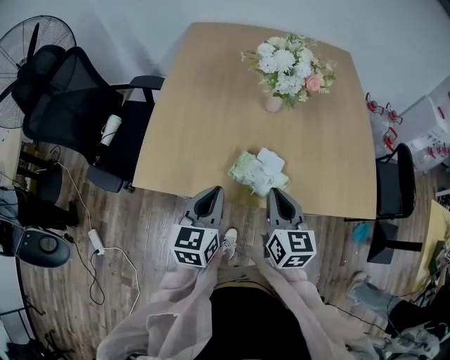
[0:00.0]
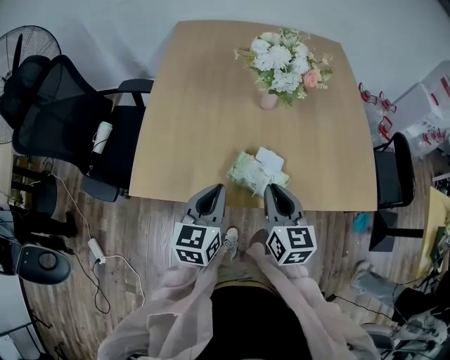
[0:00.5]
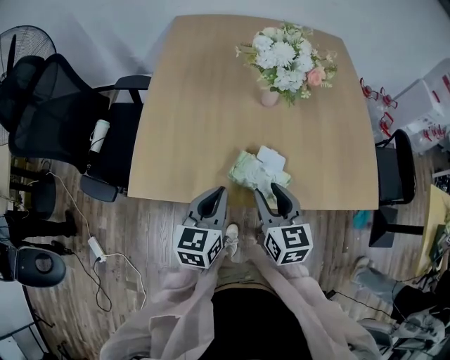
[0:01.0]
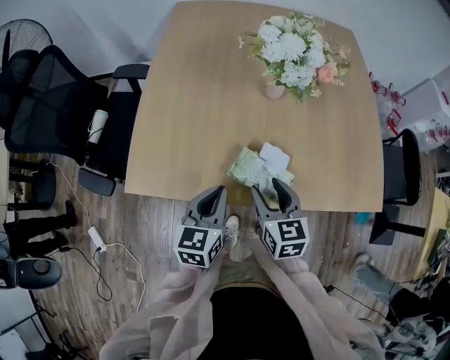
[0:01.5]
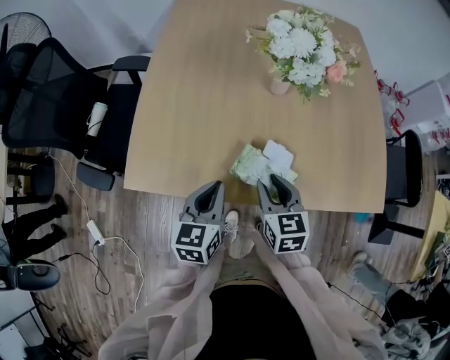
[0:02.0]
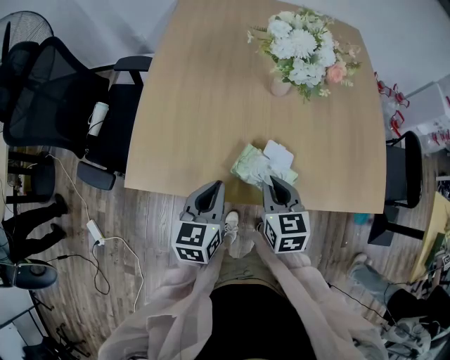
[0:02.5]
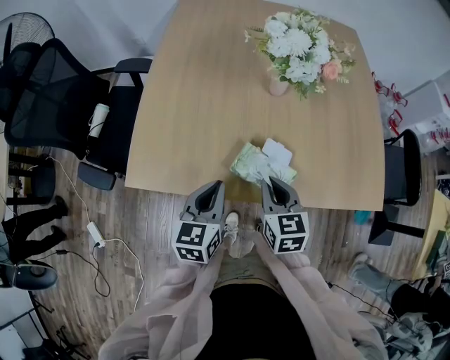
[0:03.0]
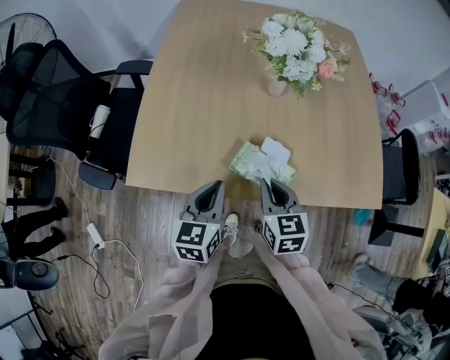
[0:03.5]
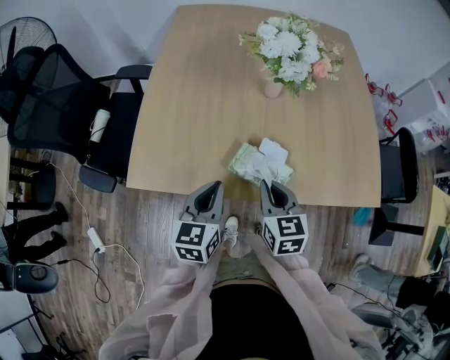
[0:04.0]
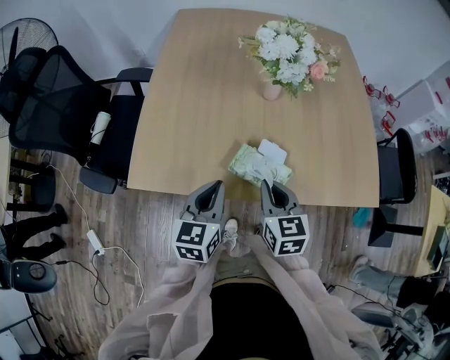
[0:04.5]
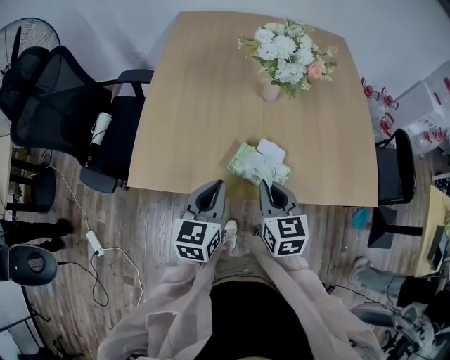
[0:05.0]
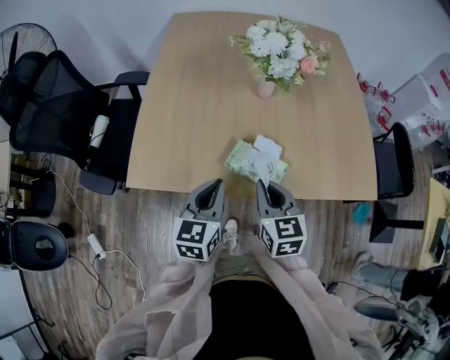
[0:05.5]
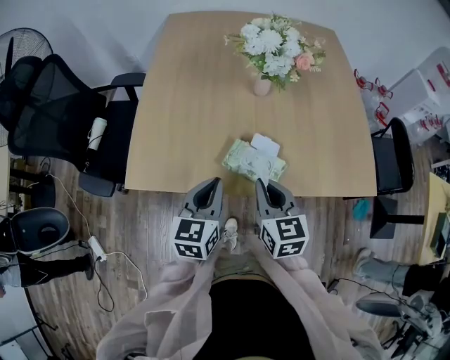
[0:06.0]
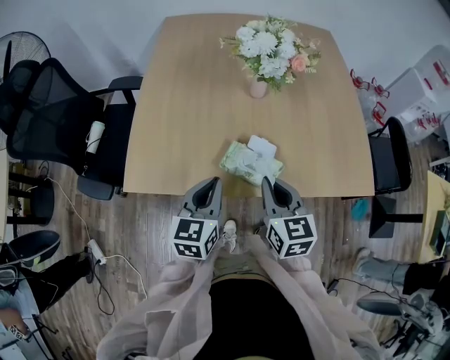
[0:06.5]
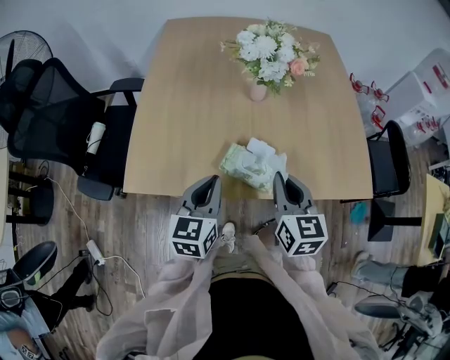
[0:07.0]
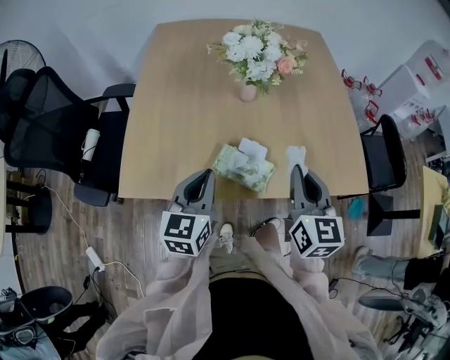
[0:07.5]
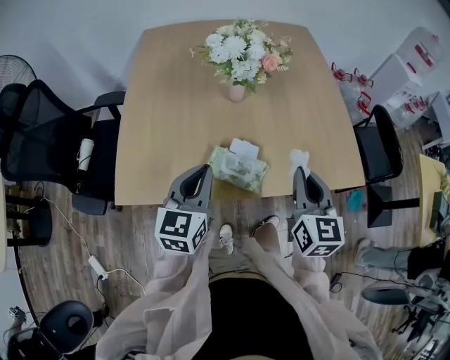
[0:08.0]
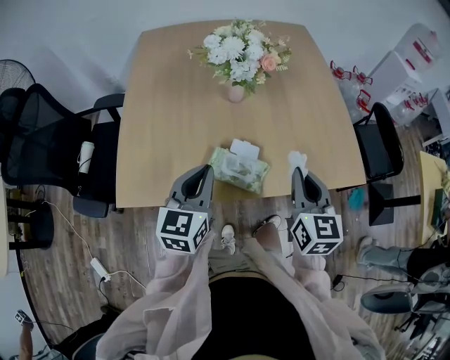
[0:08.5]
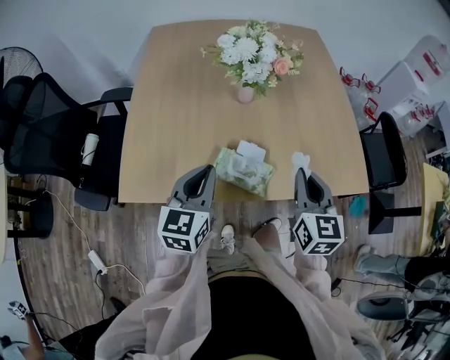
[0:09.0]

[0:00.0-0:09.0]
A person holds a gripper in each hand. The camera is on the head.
0:00.0 to 0:02.0: The right gripper travels downward and forward by about 10 cm, and opens up; the left gripper heads downward, covering about 5 cm.
0:02.0 to 0:04.5: The right gripper closes up.
0:04.5 to 0:07.0: The right gripper is displaced upward and to the right by some 10 cm.
0:07.0 to 0:09.0: The right gripper goes roughly 10 cm to the right.

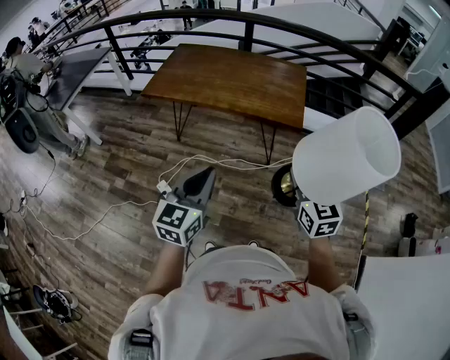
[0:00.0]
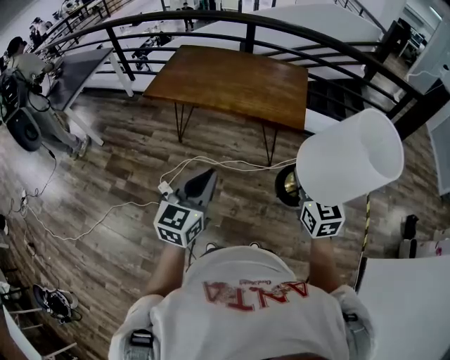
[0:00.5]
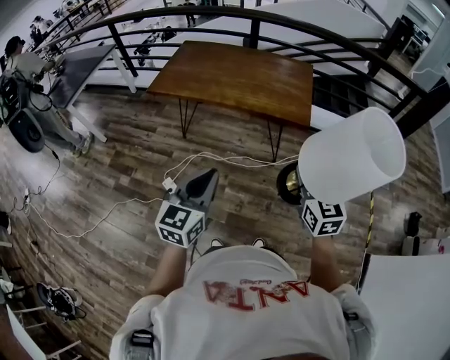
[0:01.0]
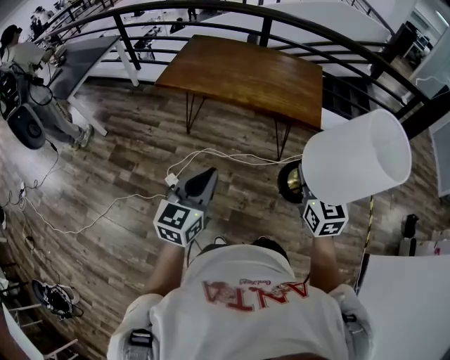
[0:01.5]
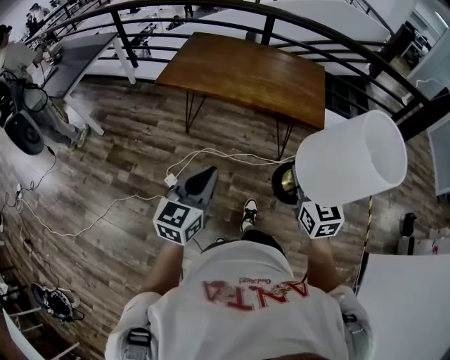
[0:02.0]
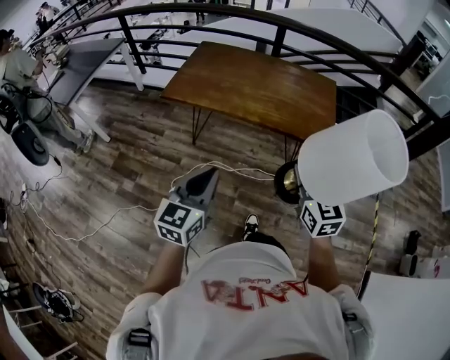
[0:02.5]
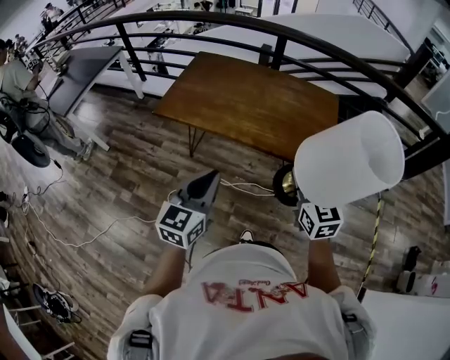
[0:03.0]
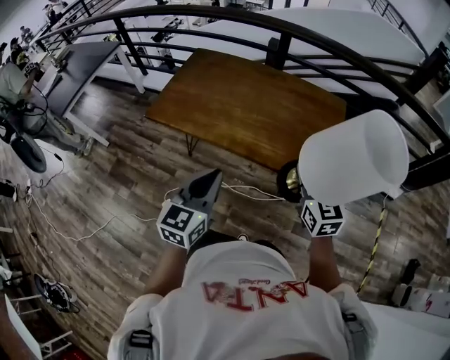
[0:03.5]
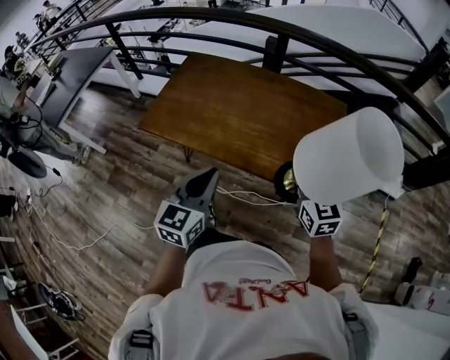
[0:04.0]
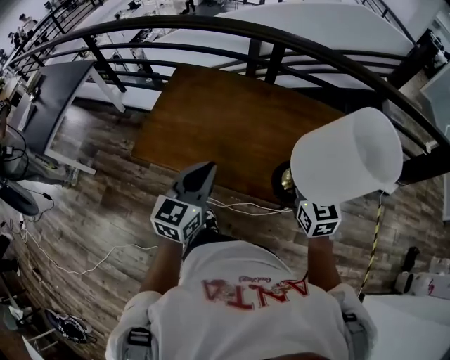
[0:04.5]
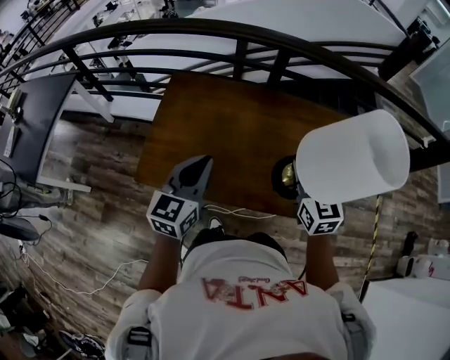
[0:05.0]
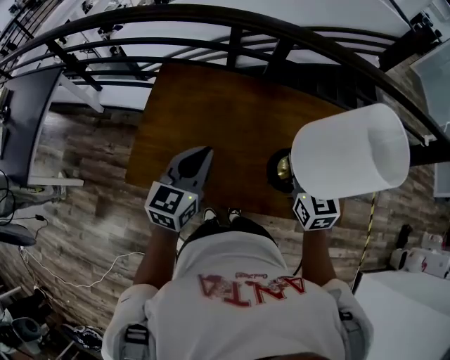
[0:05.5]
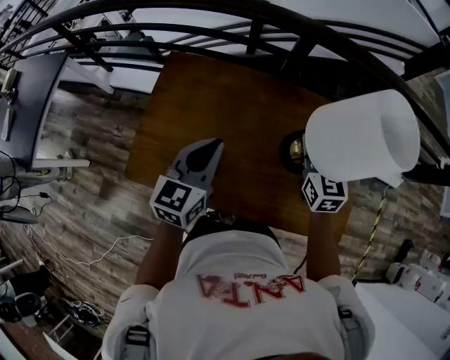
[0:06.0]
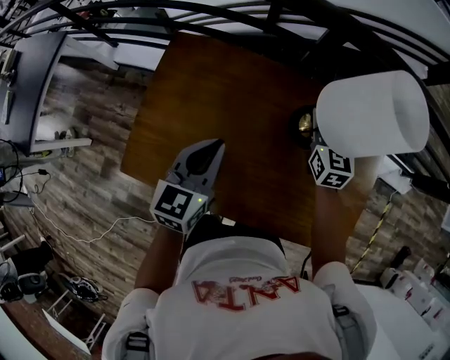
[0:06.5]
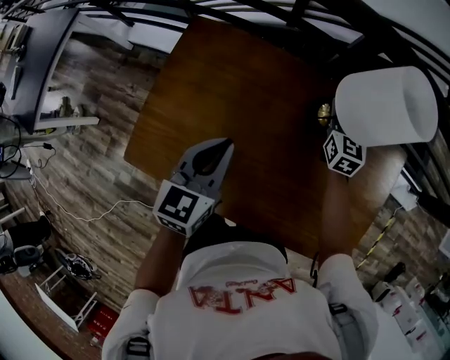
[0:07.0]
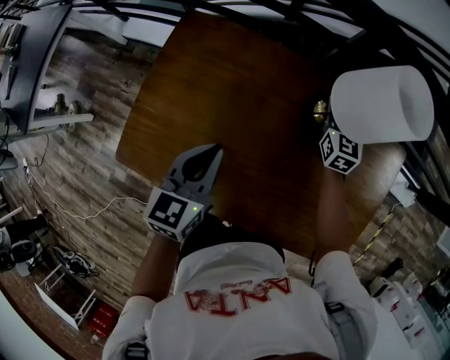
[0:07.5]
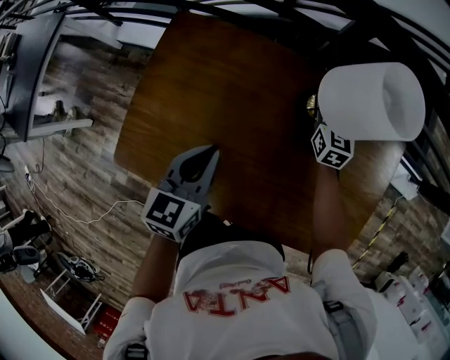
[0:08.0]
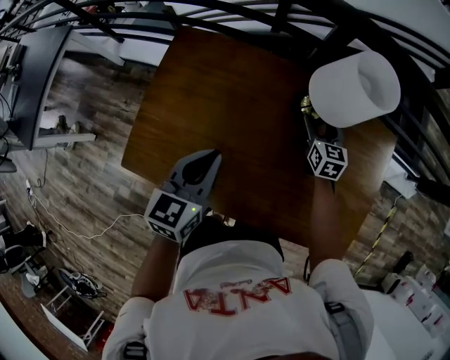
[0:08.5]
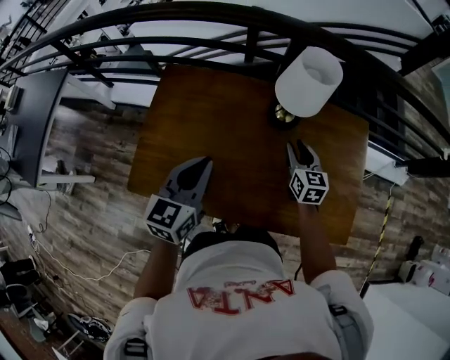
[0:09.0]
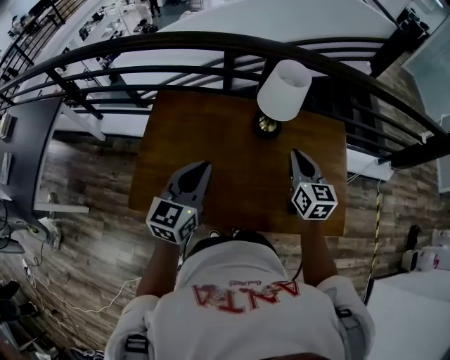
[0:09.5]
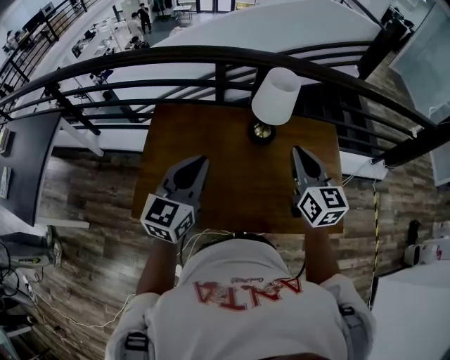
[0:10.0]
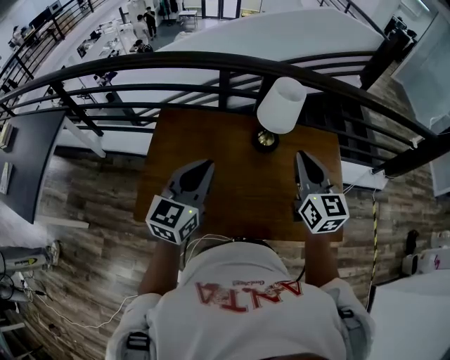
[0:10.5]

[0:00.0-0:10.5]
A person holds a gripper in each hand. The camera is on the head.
0:00.0 to 0:02.0: The grippers both shift to the left by some 15 cm.
0:02.0 to 0:04.0: Both grippers travel together forward, approximately 35 cm.
0:04.0 to 0:06.5: Both grippers travel together forward, roughly 40 cm.
0:06.5 to 0:08.5: The right gripper is displaced downward by roughly 10 cm, and opens up.
0:08.5 to 0:10.5: The left gripper shifts about 15 cm upward, and swivels roughly 30 degrees. Meanwhile the right gripper is displaced upward and backward by about 35 cm, changes its angle by some 20 degrees, and closes its fingers.

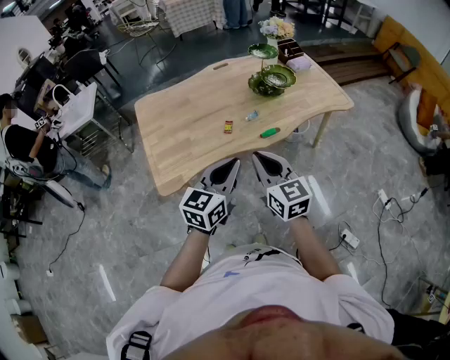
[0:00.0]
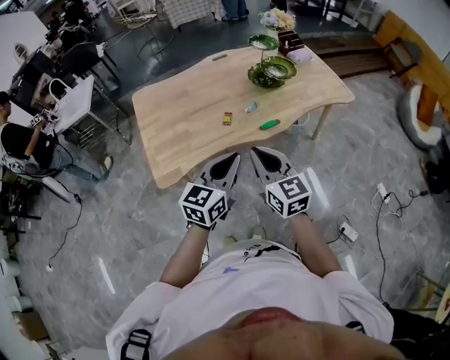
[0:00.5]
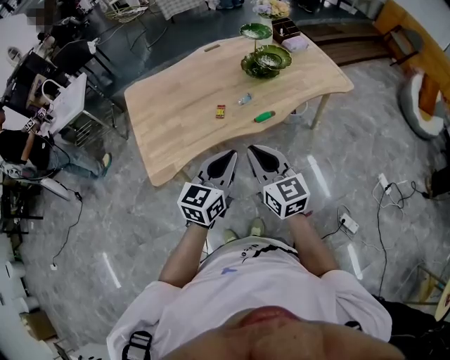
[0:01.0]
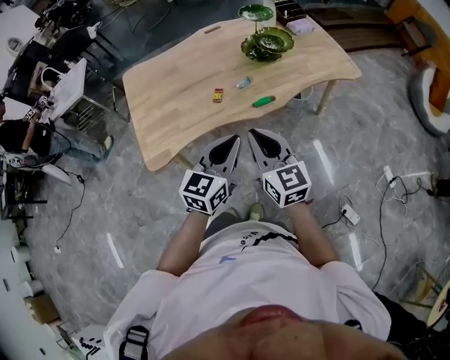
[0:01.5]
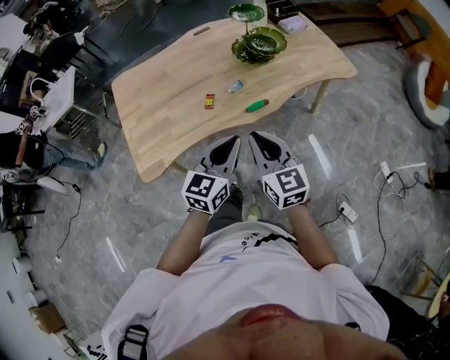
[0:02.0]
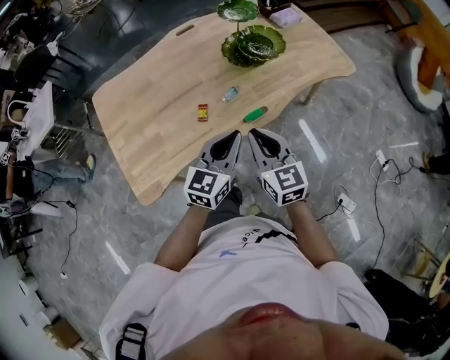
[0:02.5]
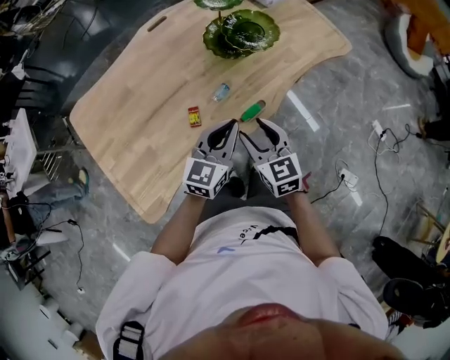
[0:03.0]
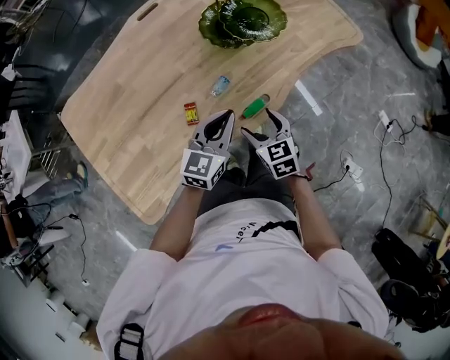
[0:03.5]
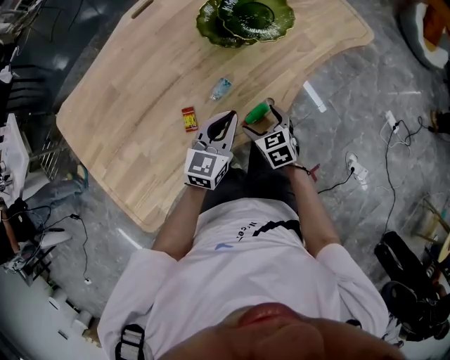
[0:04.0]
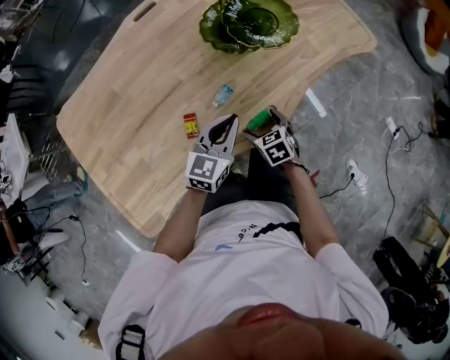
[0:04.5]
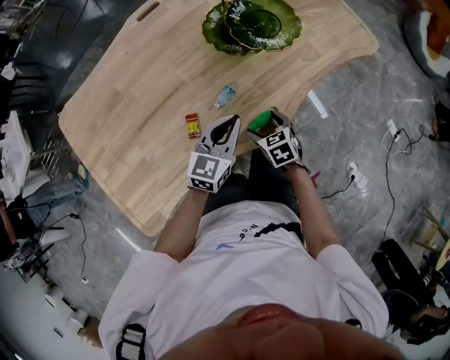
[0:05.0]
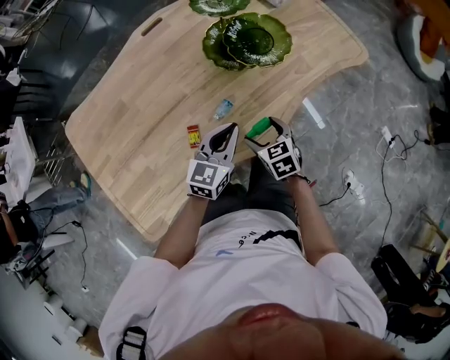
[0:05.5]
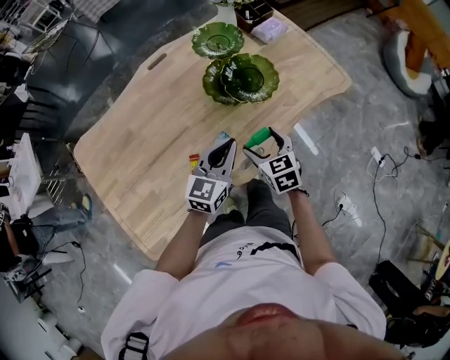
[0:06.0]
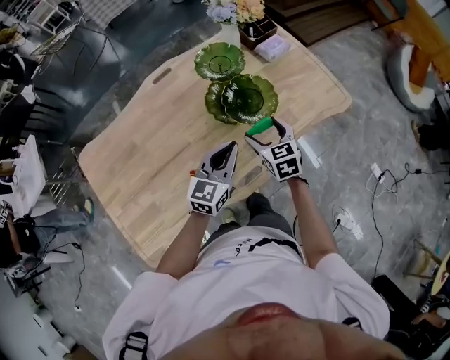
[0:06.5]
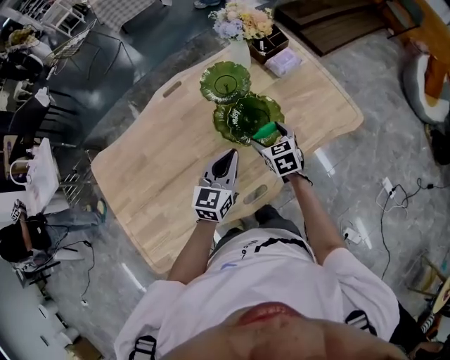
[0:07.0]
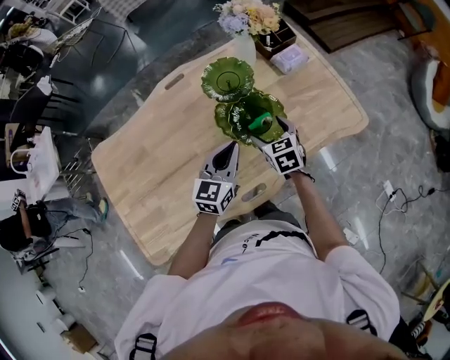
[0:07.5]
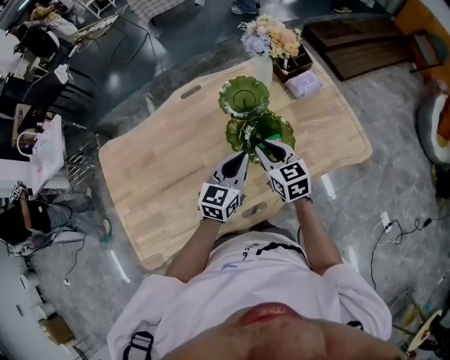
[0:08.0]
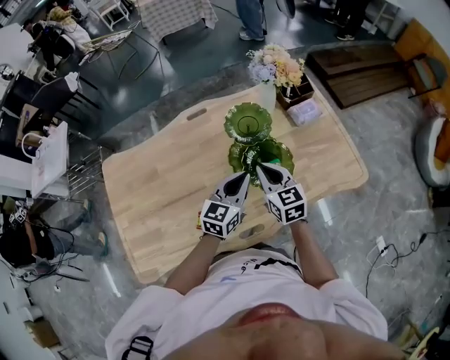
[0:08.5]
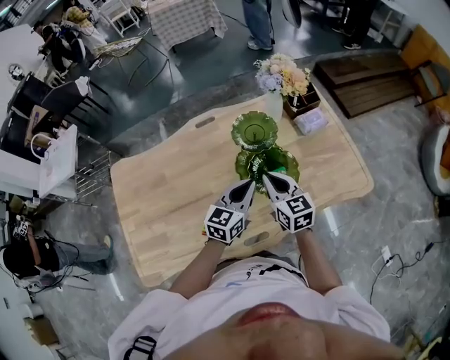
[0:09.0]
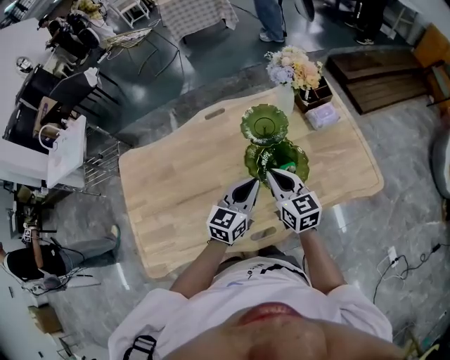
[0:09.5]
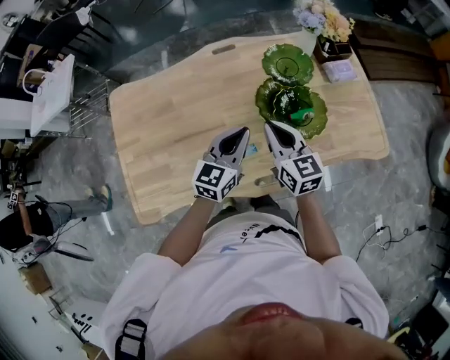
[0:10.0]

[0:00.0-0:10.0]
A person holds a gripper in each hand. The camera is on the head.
0:00.0 to 0:02.0: The right gripper shifts some 10 cm to the right, forward and downward. Meanwhile the left gripper heads forward, to the right and downward, covering some 15 cm.
0:02.0 to 0:04.0: The right gripper heads downward and forward, covering some 40 cm, angles its fingers downward, by approximately 40 degrees, and opens its fingers. The left gripper travels forward and downward by about 35 cm.
0:04.0 to 0:06.0: The left gripper shifts approximately 10 cm upward, while the right gripper heads upward and forward, covering approximately 20 cm.
0:06.0 to 0:08.0: The left gripper shifts some 15 cm forward, while the right gripper is displaced forward and upward by about 20 cm, and closes up.
0:08.0 to 0:10.0: The grippers both shift to the left by roughly 10 cm.
